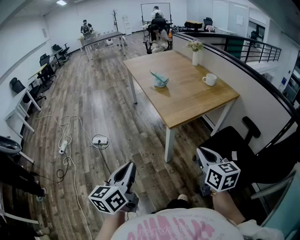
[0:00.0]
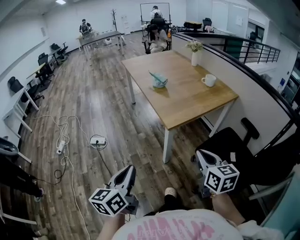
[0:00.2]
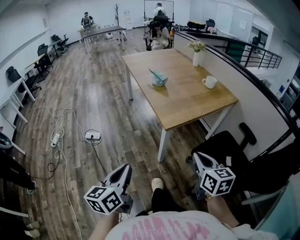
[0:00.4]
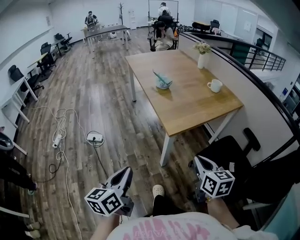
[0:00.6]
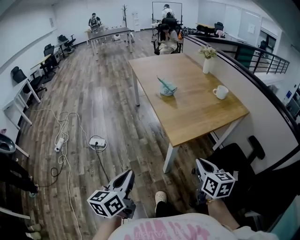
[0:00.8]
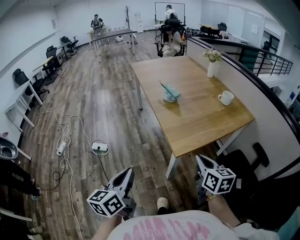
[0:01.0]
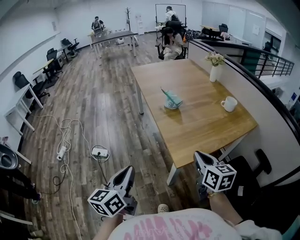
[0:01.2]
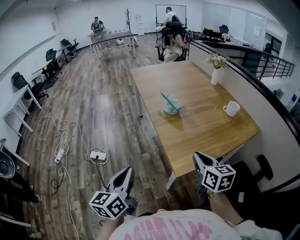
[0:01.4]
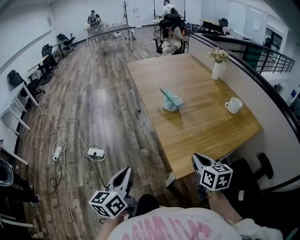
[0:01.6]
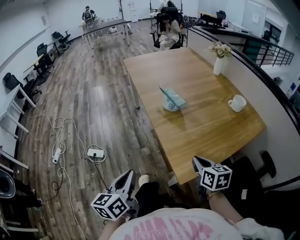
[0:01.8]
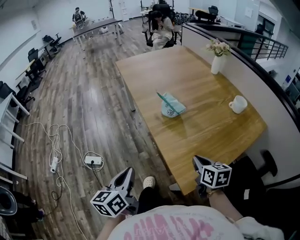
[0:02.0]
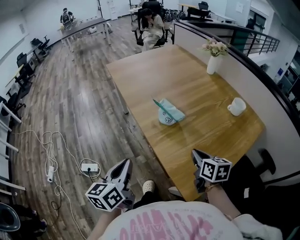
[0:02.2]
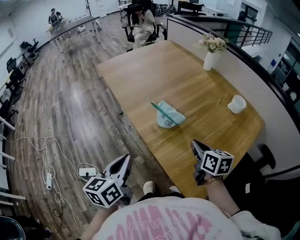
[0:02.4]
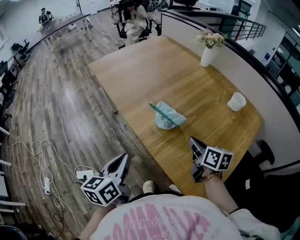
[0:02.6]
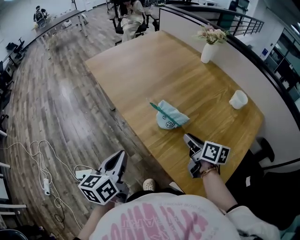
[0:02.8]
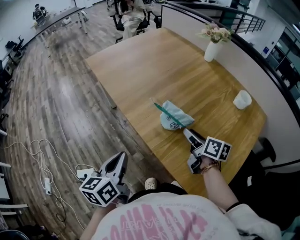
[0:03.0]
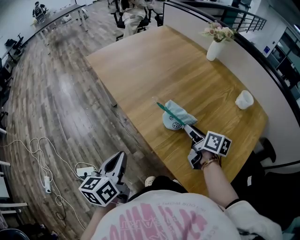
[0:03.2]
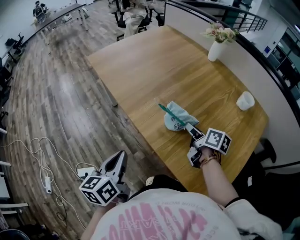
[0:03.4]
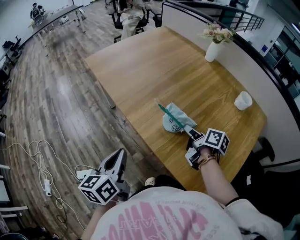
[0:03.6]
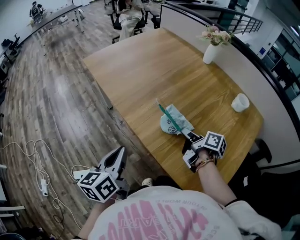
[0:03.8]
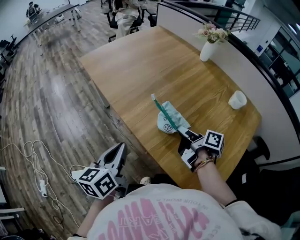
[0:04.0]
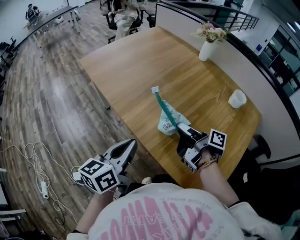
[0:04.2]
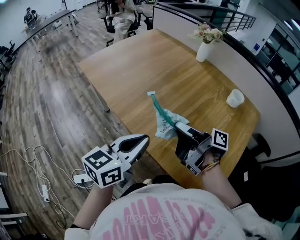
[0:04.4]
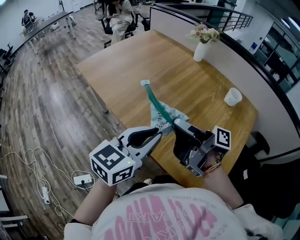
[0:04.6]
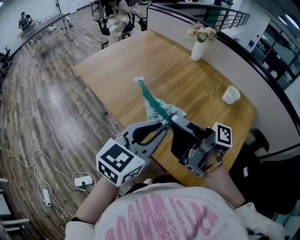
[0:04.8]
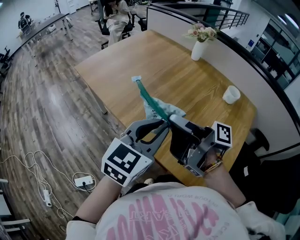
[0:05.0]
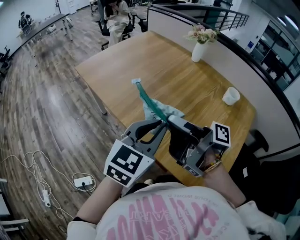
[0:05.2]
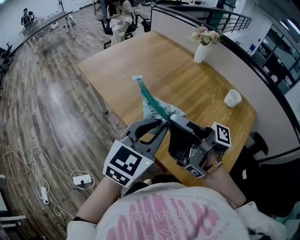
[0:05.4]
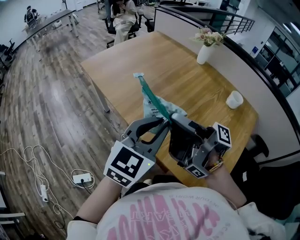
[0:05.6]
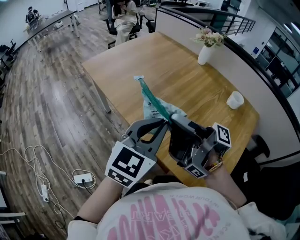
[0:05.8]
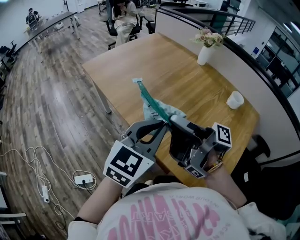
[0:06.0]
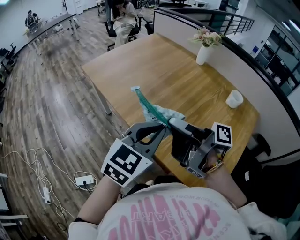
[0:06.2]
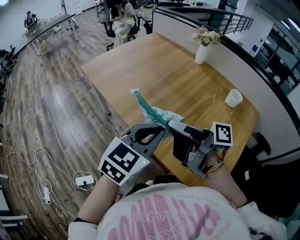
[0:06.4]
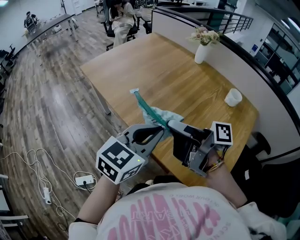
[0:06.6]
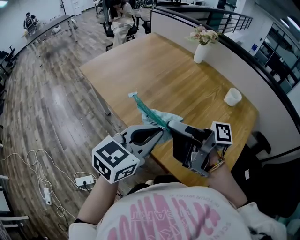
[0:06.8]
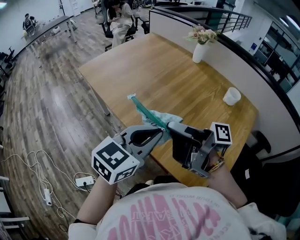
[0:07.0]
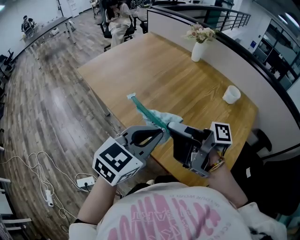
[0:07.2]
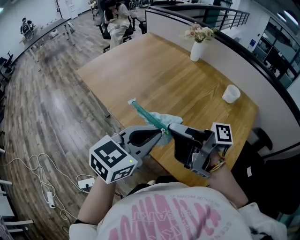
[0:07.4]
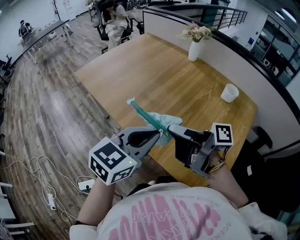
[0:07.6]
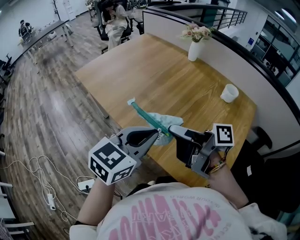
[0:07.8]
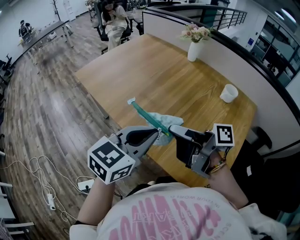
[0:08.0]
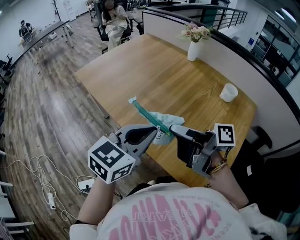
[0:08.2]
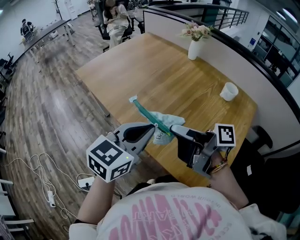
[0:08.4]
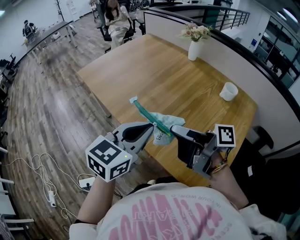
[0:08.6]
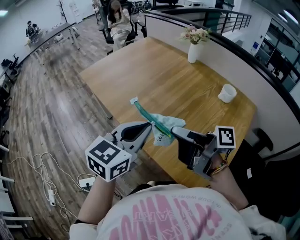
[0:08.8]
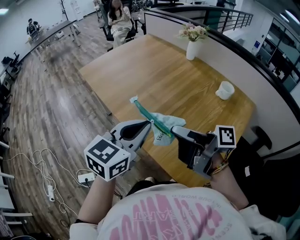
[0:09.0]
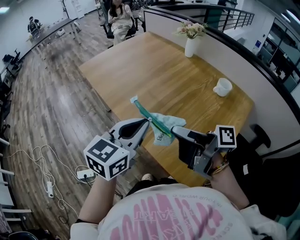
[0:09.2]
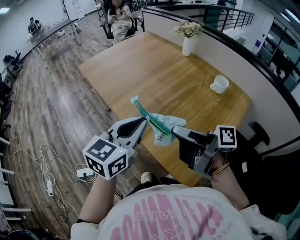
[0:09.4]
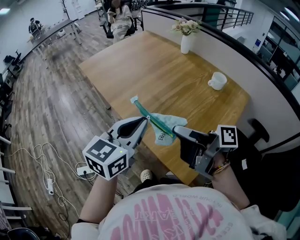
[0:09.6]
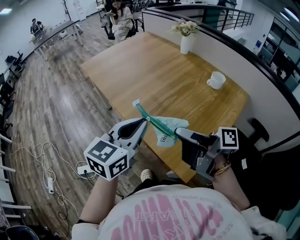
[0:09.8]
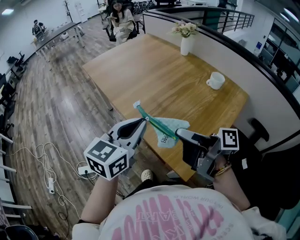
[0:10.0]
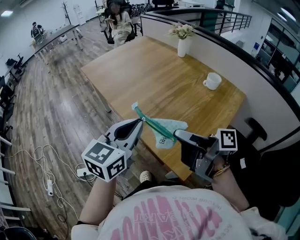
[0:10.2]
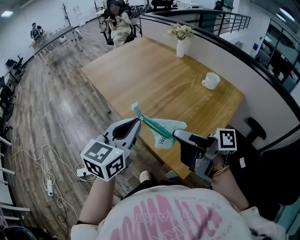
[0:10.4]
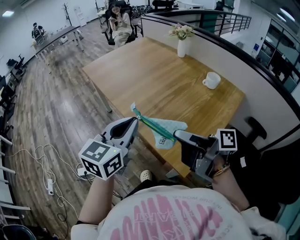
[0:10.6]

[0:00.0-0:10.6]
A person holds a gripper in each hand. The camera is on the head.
0:00.0 to 0:01.6: The two grippers go approximately 30 cm forward.
0:01.6 to 0:03.0: Both grippers move forward, about 35 cm. The right gripper changes its angle by about 40 degrees, and opens its fingers. The left gripper turns by approximately 20 degrees.
0:03.0 to 0:04.6: The left gripper shifts about 15 cm to the right, upward and forward, and rotates roughly 50 degrees. The right gripper shifts some 15 cm upward and to the left, angles its fingers upward, by roughly 30 degrees, and closes.
0:04.6 to 0:06.0: The right gripper shifts by some 5 cm.
0:06.0 to 0:07.6: The right gripper moves some 5 cm.
0:07.6 to 0:09.0: The right gripper moves backward and to the right, roughly 10 cm.
0:09.0 to 0:10.6: Both grippers travel together backward, some 10 cm.

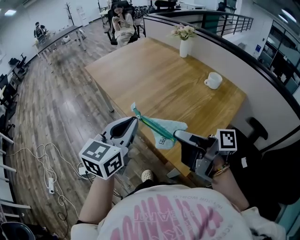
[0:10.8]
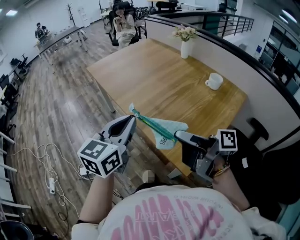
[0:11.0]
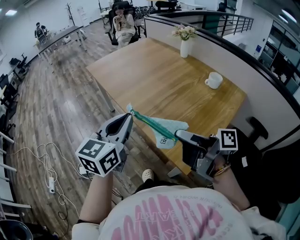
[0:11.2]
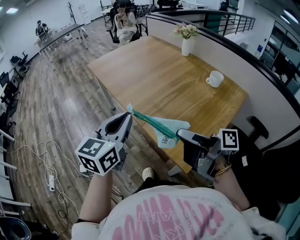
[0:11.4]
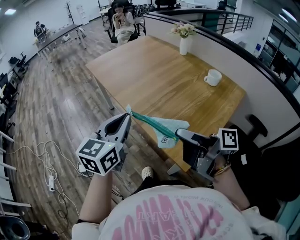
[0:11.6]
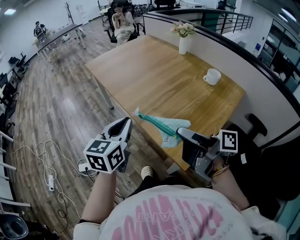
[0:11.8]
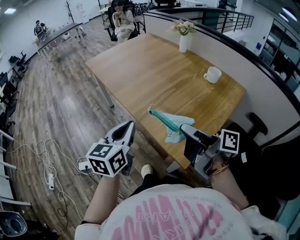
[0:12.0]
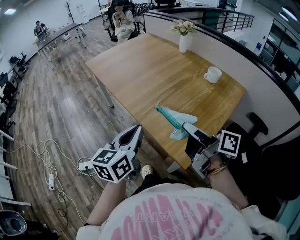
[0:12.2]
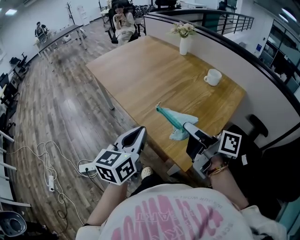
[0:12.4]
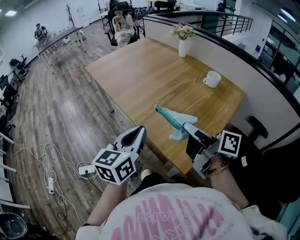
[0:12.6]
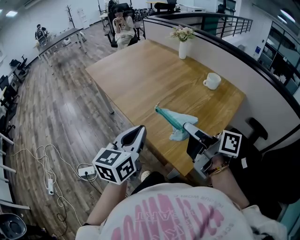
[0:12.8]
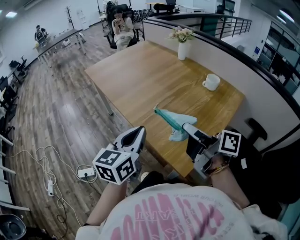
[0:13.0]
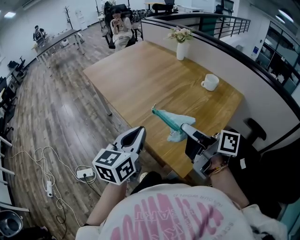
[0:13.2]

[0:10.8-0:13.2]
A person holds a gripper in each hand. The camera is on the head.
0:10.8 to 0:12.0: The left gripper travels downward by roughly 5 cm.
0:12.0 to 0:13.2: The grippers make only small movements.

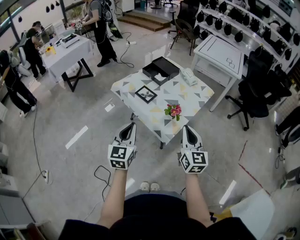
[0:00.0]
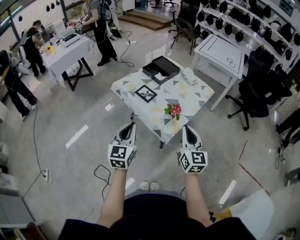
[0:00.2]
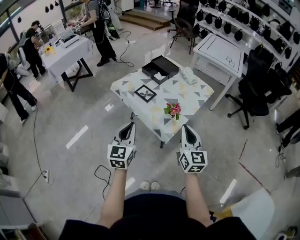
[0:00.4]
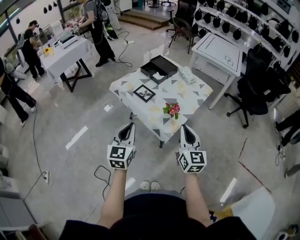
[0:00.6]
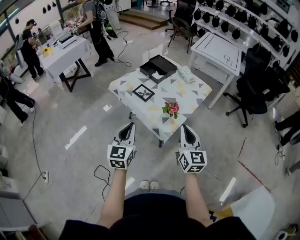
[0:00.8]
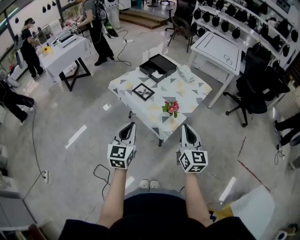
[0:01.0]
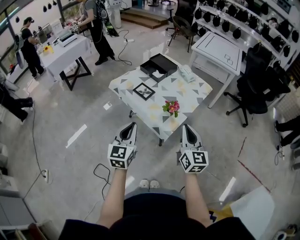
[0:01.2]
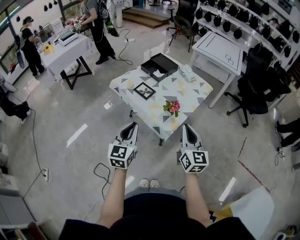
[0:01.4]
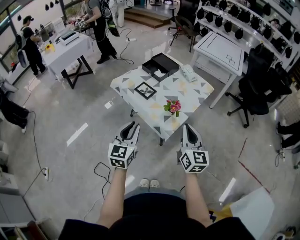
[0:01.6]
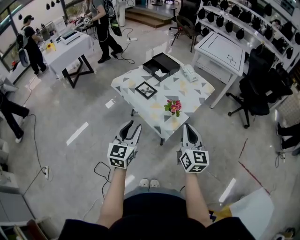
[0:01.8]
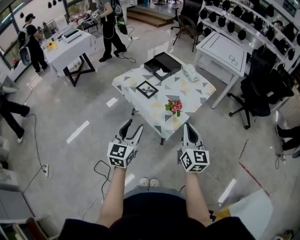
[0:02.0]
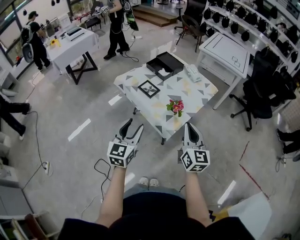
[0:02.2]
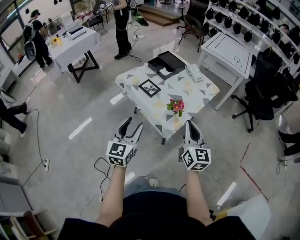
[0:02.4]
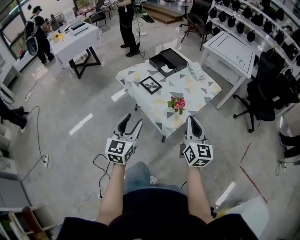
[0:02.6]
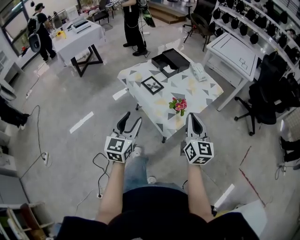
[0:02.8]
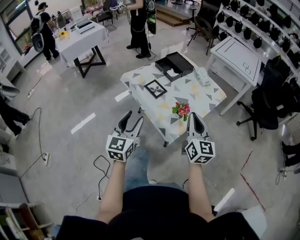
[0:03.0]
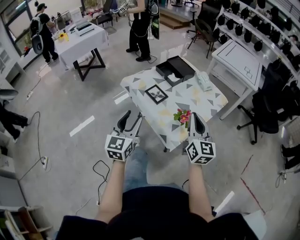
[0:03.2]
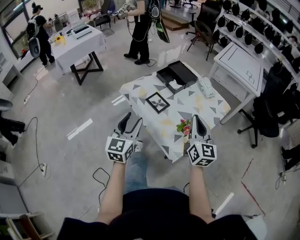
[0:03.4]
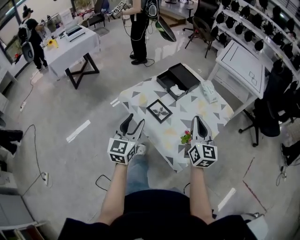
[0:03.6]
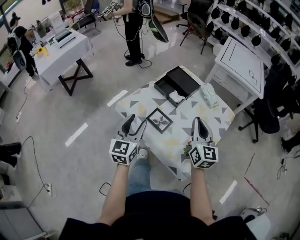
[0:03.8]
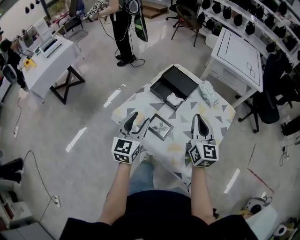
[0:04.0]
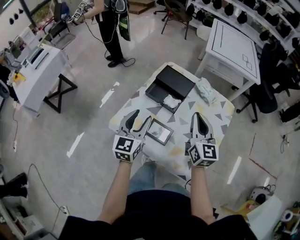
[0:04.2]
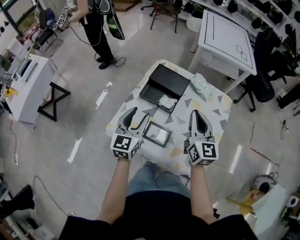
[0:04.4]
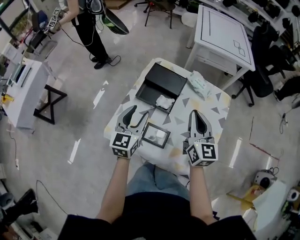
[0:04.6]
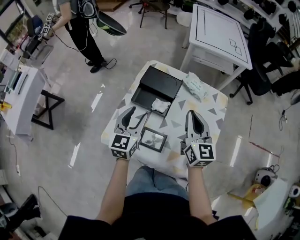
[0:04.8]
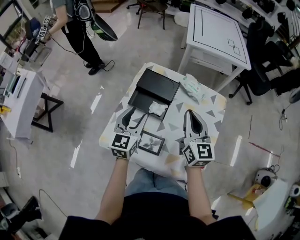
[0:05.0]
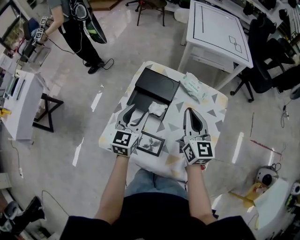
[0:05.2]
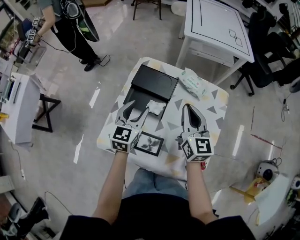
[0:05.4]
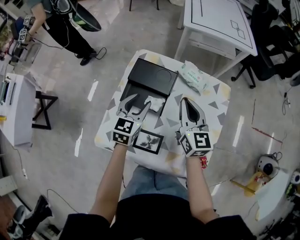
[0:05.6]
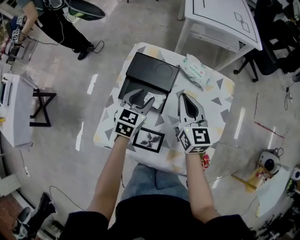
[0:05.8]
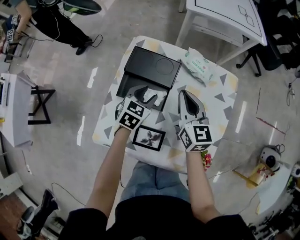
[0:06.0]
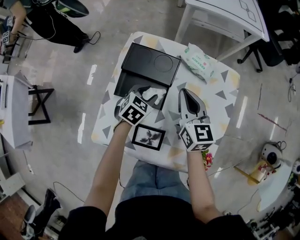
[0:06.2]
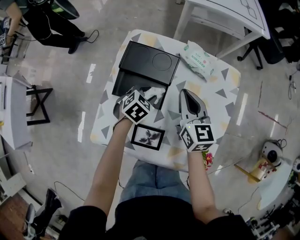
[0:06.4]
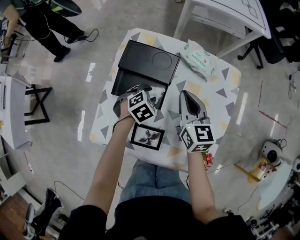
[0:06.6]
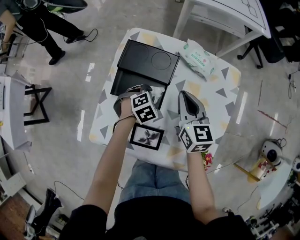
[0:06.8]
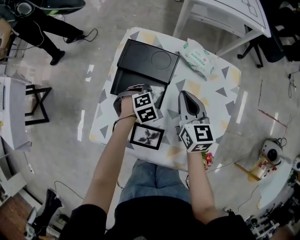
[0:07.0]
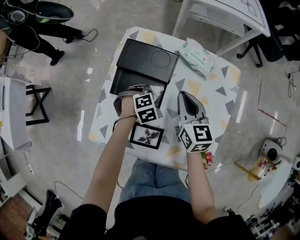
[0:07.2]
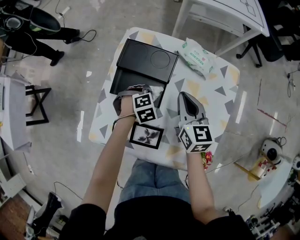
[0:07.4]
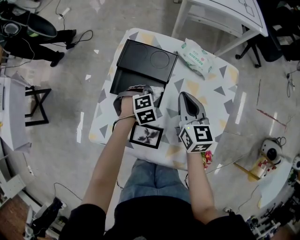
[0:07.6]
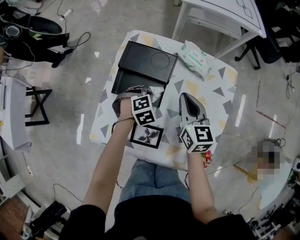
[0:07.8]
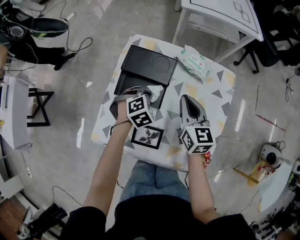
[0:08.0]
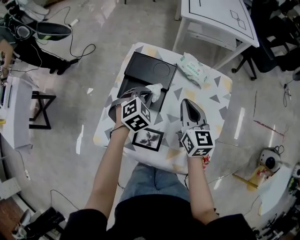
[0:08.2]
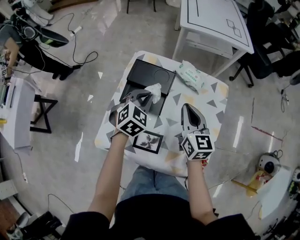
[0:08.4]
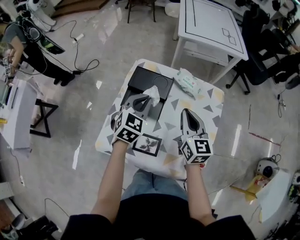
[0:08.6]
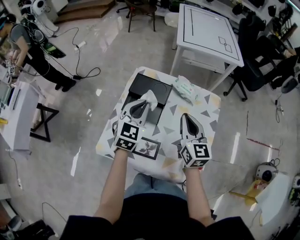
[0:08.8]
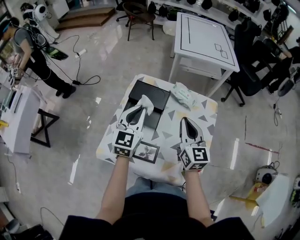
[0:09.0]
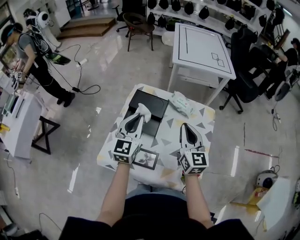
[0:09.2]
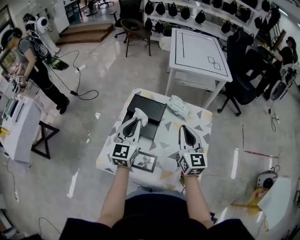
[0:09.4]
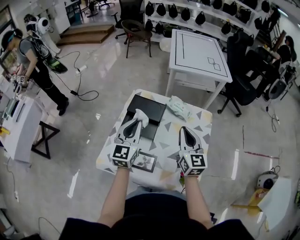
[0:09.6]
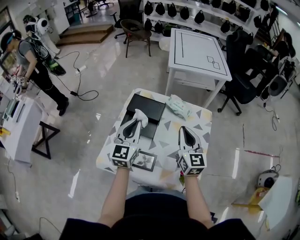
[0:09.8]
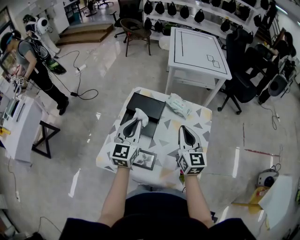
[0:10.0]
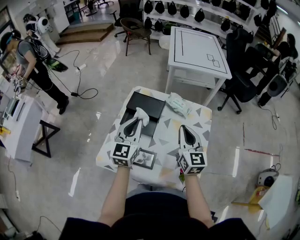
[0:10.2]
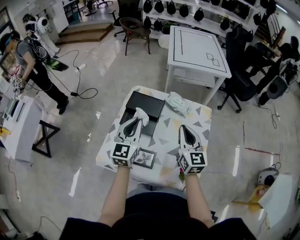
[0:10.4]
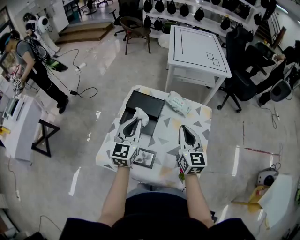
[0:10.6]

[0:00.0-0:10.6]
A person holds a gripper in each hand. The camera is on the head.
0:00.0 to 0:01.6: The grippers make only small movements.
0:01.6 to 0:03.0: The left gripper opens its fingers; the right gripper heads forward, covering approximately 10 cm.
0:03.0 to 0:04.6: The two grippers travel together, roughly 50 cm. The left gripper changes its angle by about 30 degrees. Meanwhile the right gripper changes its angle by some 30 degrees.
0:04.6 to 0:06.0: The right gripper is displaced forward and downward by approximately 20 cm; the left gripper heads forward, downward and to the right, covering about 25 cm, and rotates about 40 degrees.
0:06.0 to 0:07.6: The left gripper travels downward by some 10 cm, rotates some 50 degrees, and closes, while the right gripper shifts by approximately 5 cm.
0:07.6 to 0:09.0: The left gripper goes approximately 30 cm upward, and points its fingers some 60 degrees further upward. The right gripper shifts roughly 20 cm upward and backward.
0:09.0 to 0:10.6: The grippers make only small movements.
